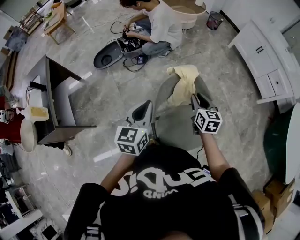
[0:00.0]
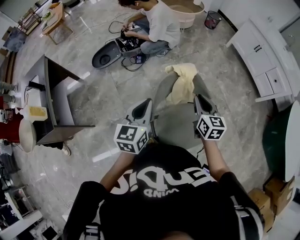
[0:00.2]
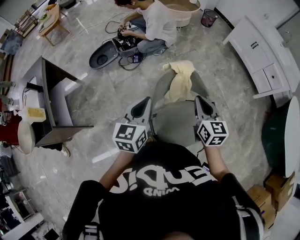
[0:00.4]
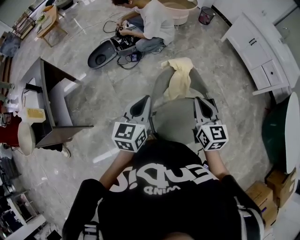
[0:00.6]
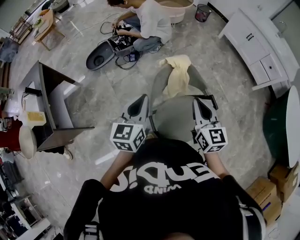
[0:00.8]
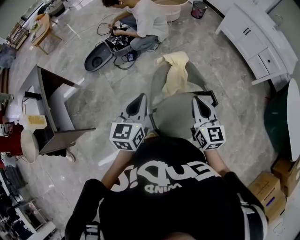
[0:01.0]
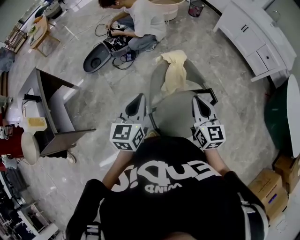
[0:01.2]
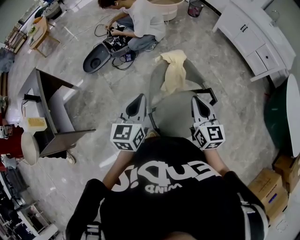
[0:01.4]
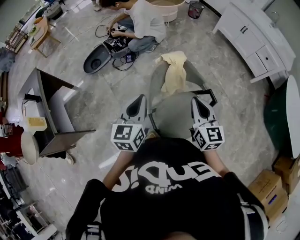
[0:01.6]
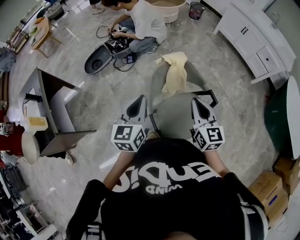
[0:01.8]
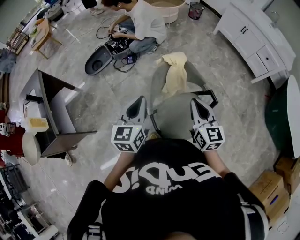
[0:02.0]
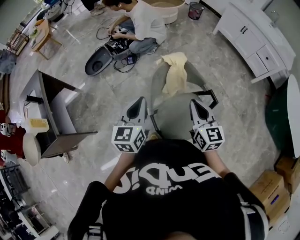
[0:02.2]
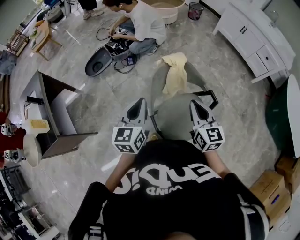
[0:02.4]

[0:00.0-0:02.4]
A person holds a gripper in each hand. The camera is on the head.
0:00.0 to 0:01.2: The right gripper travels backward and upward by about 15 cm, and closes.
0:01.2 to 0:02.4: The grippers move only a little.

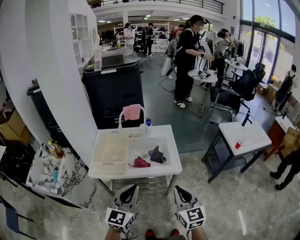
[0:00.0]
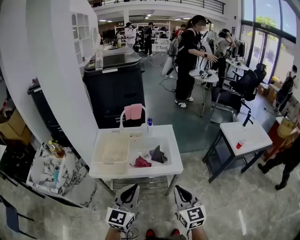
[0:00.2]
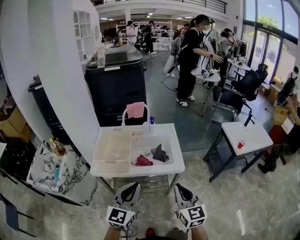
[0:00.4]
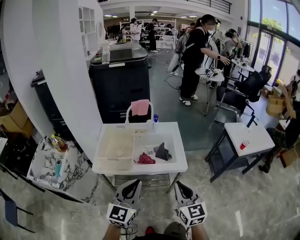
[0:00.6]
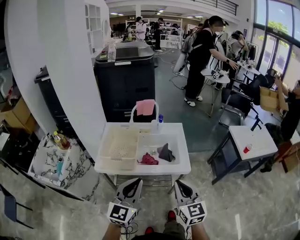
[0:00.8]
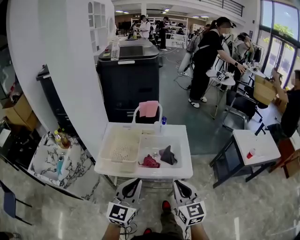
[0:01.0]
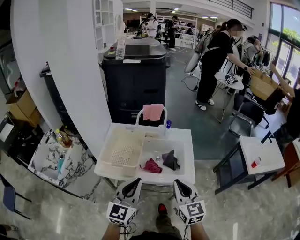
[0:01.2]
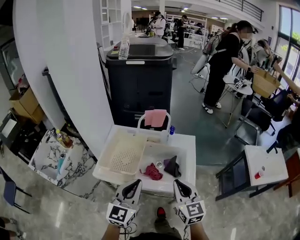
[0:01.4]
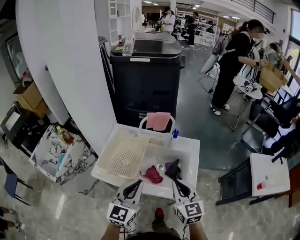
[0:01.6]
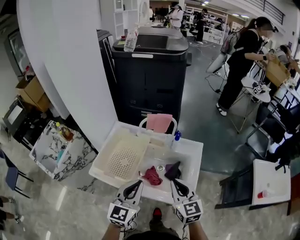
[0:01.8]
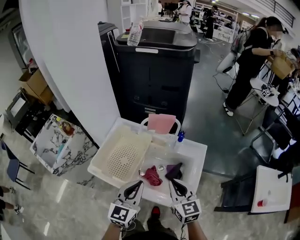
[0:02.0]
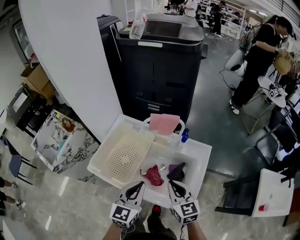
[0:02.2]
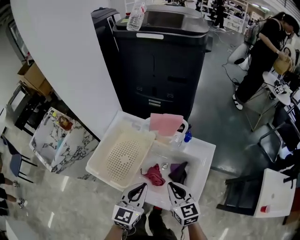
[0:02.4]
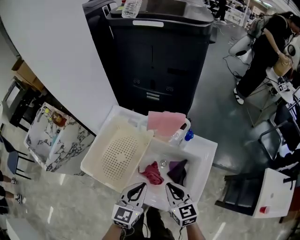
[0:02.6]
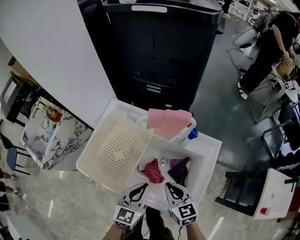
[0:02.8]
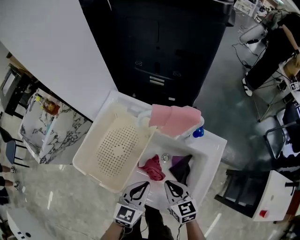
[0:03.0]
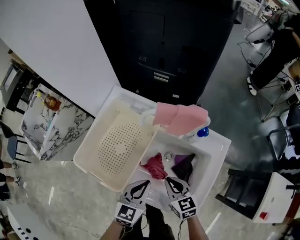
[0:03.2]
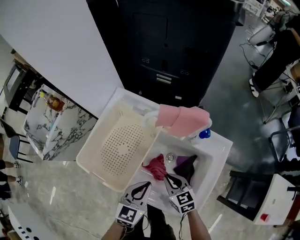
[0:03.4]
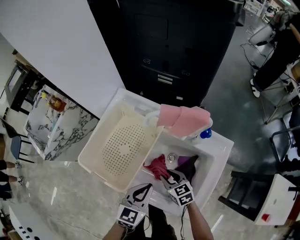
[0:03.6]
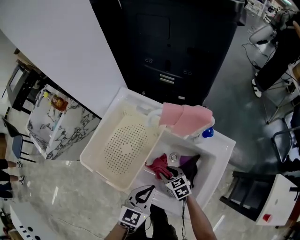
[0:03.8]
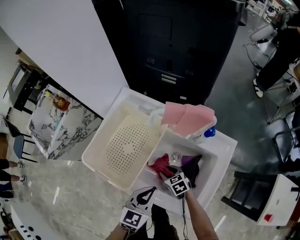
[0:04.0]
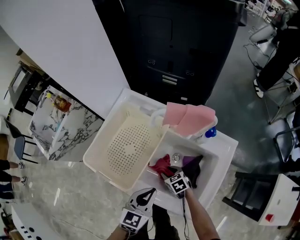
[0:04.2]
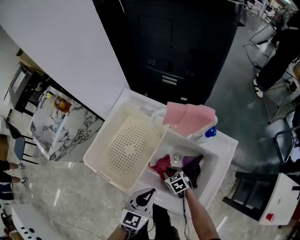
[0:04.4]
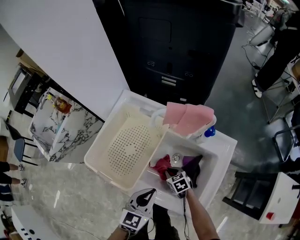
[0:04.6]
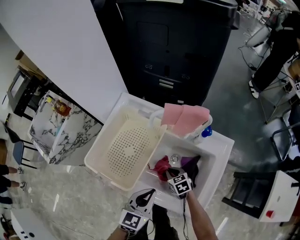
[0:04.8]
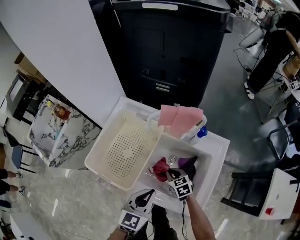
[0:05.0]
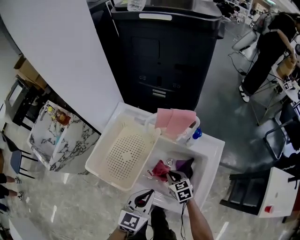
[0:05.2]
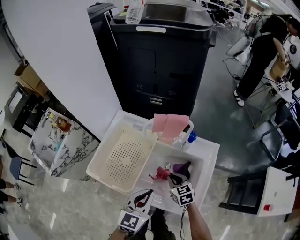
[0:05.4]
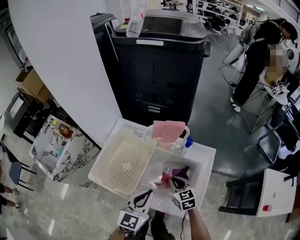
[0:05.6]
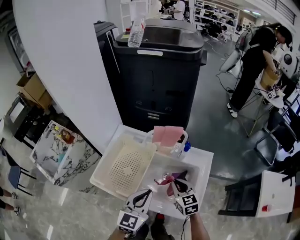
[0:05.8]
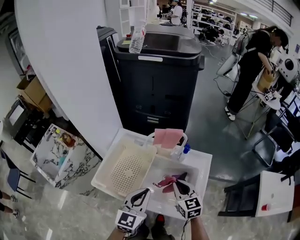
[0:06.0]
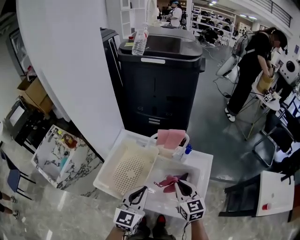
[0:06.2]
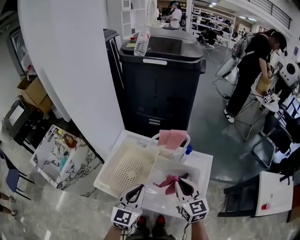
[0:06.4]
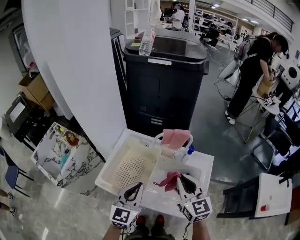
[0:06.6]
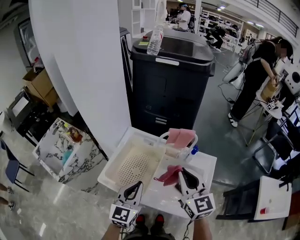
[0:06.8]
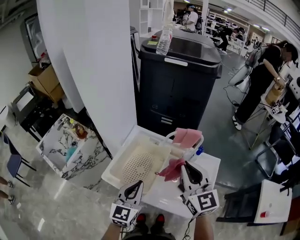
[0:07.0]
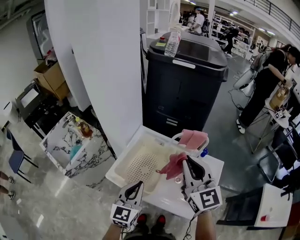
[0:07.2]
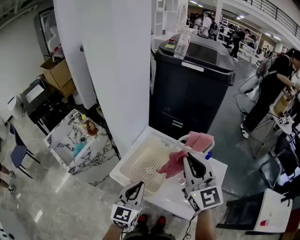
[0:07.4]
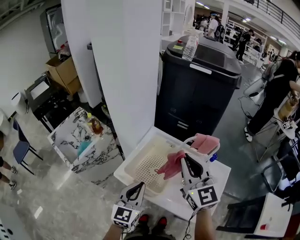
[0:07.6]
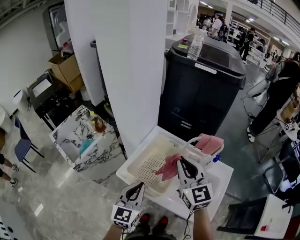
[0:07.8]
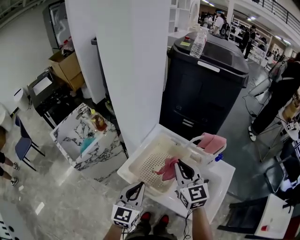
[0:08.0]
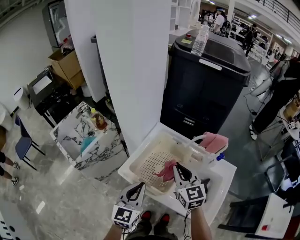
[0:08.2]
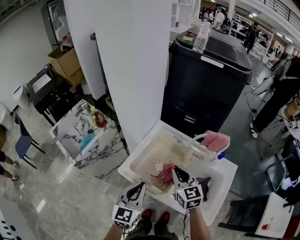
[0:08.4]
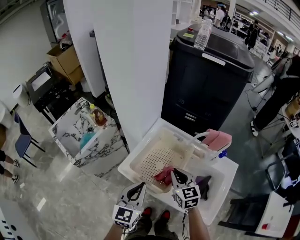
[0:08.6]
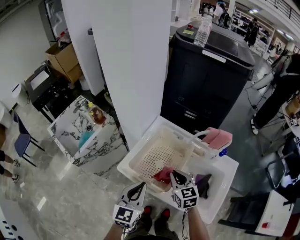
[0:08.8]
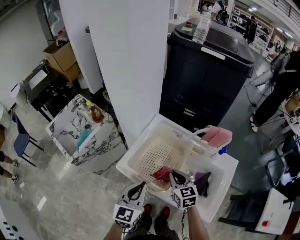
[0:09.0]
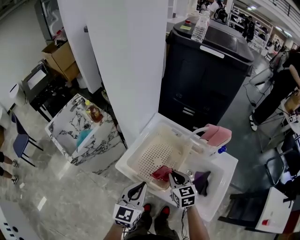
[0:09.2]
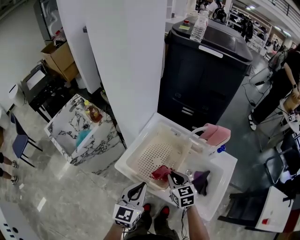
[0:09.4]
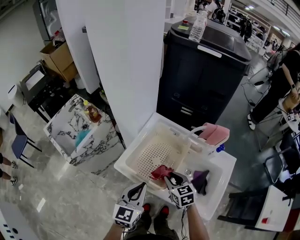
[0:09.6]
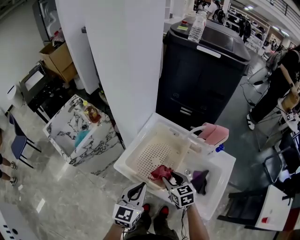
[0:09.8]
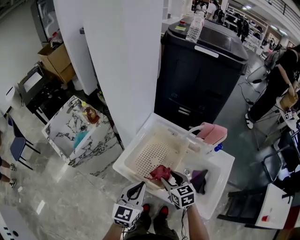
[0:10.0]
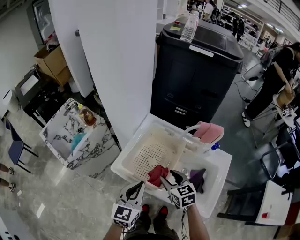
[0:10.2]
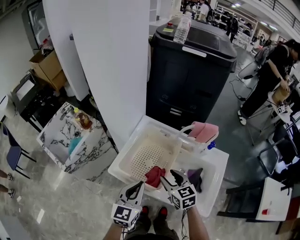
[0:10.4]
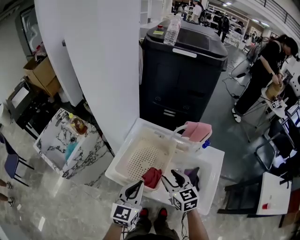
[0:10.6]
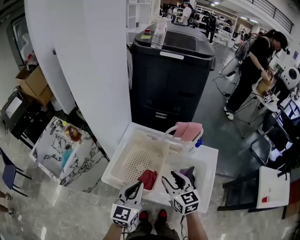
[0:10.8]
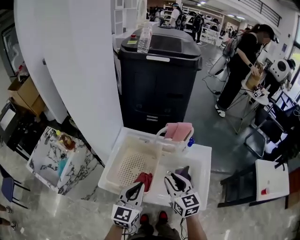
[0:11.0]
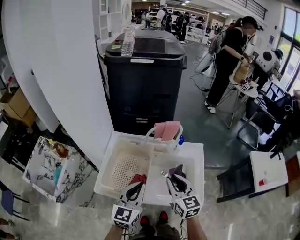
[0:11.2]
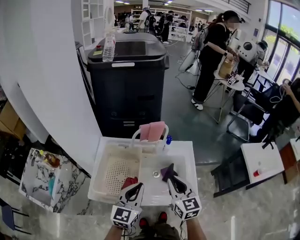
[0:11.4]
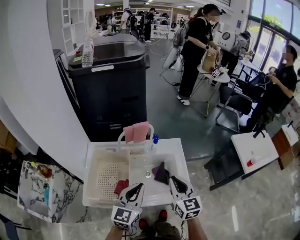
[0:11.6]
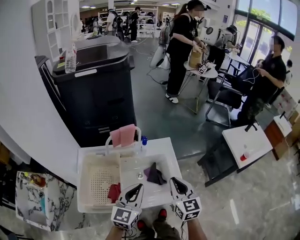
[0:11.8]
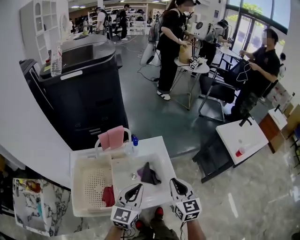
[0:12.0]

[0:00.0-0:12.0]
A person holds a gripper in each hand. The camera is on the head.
0:00.0 to 0:01.6: Both grippers move forward, some 20 cm.
0:01.6 to 0:03.0: The grippers both shift downward and forward by approximately 25 cm. The left gripper rotates roughly 20 degrees; the right gripper rotates roughly 30 degrees.
0:03.0 to 0:04.4: The right gripper moves downward, approximately 20 cm, and turns by approximately 30 degrees.
0:04.4 to 0:06.0: The right gripper goes roughly 30 cm upward, and angles its fingers upward, by roughly 30 degrees; the left gripper is displaced upward by some 15 cm.
0:06.0 to 0:07.6: The left gripper travels to the left by roughly 15 cm. Meanwhile the right gripper heads upward and to the left, covering roughly 30 cm, and turns by about 30 degrees.
0:07.6 to 0:09.0: The right gripper heads downward, covering about 30 cm, and tilts its fingers about 30 degrees downward. The left gripper travels downward by about 5 cm.
0:09.0 to 0:10.4: The right gripper opens.
0:10.4 to 0:12.0: The left gripper moves approximately 25 cm, and swivels some 40 degrees; the right gripper moves some 30 cm, swivels some 50 degrees, and closes.

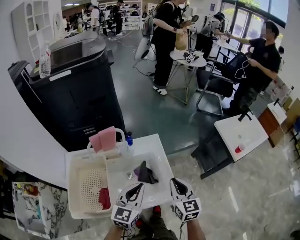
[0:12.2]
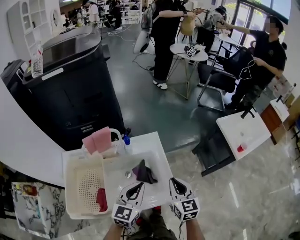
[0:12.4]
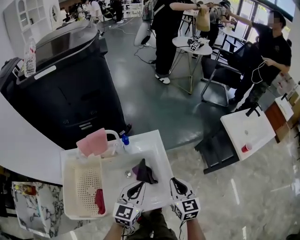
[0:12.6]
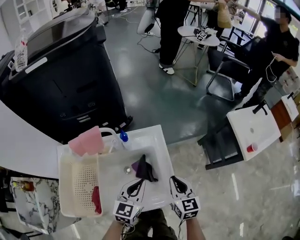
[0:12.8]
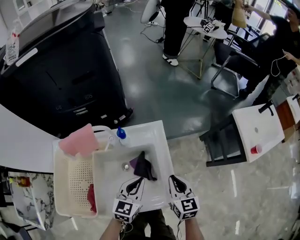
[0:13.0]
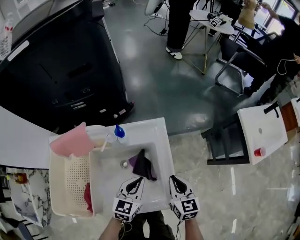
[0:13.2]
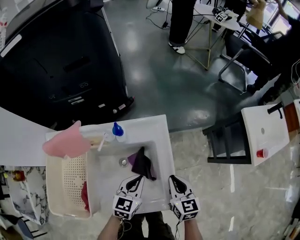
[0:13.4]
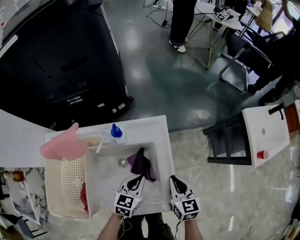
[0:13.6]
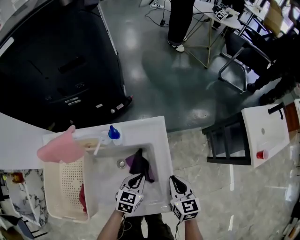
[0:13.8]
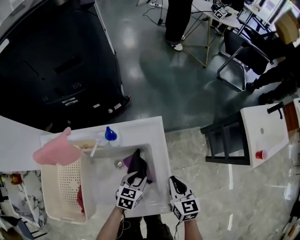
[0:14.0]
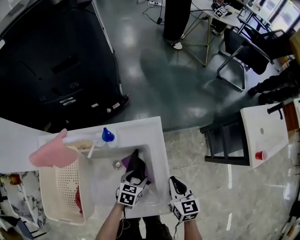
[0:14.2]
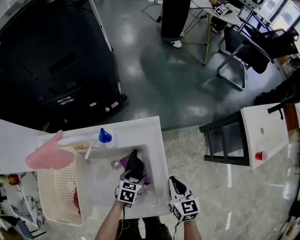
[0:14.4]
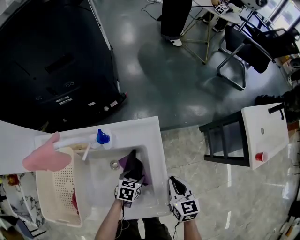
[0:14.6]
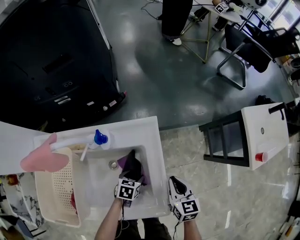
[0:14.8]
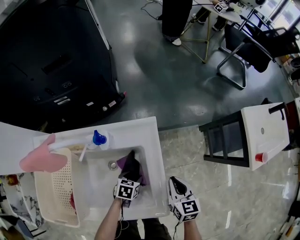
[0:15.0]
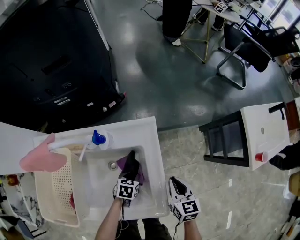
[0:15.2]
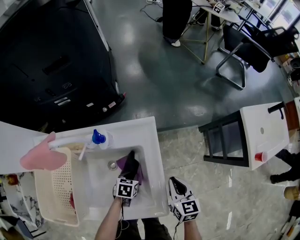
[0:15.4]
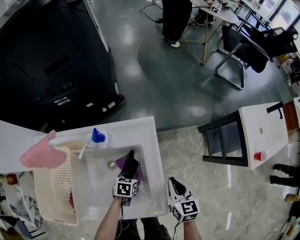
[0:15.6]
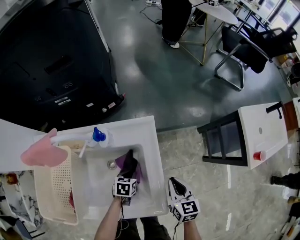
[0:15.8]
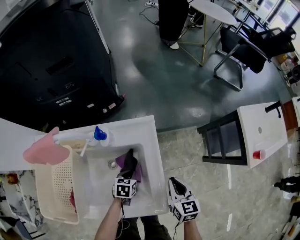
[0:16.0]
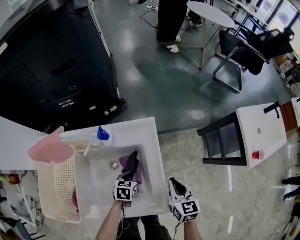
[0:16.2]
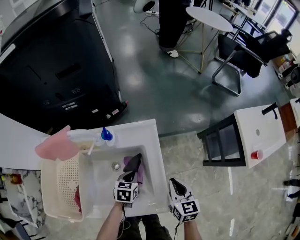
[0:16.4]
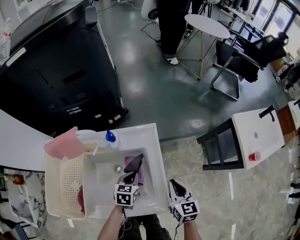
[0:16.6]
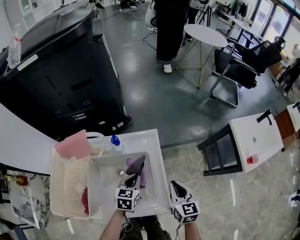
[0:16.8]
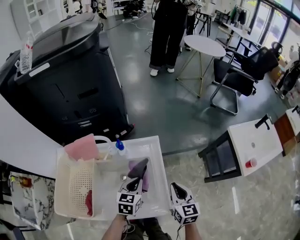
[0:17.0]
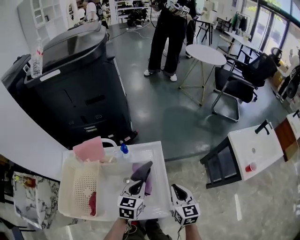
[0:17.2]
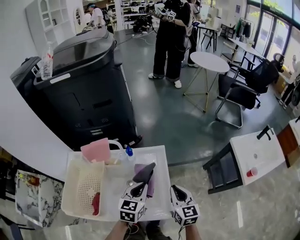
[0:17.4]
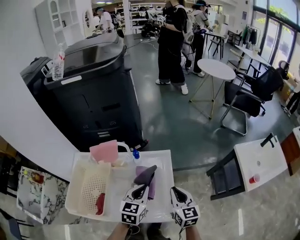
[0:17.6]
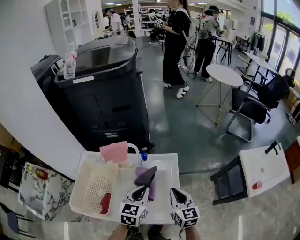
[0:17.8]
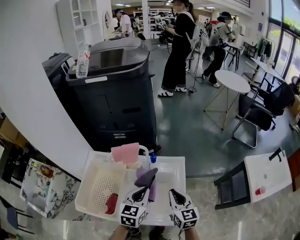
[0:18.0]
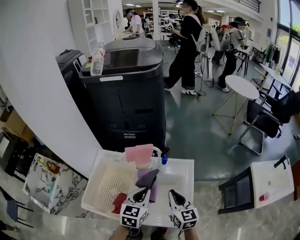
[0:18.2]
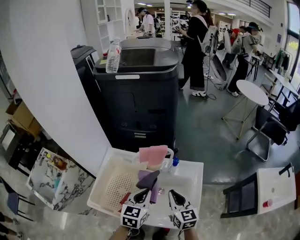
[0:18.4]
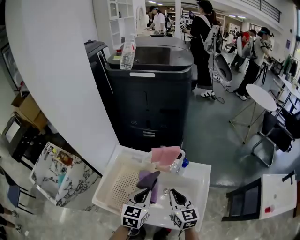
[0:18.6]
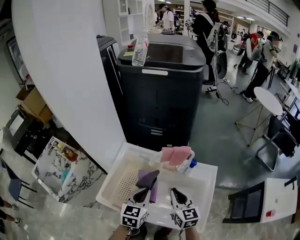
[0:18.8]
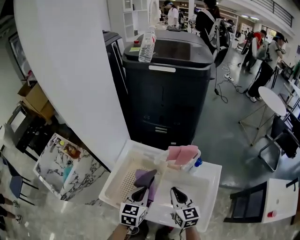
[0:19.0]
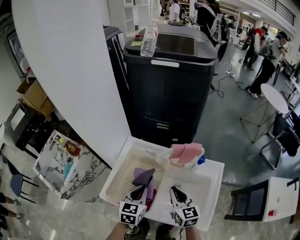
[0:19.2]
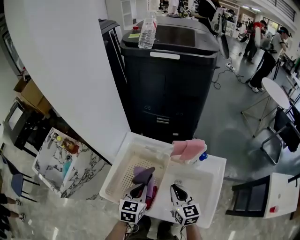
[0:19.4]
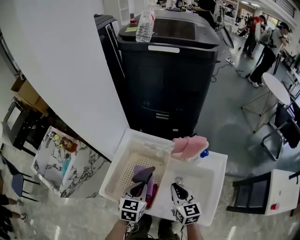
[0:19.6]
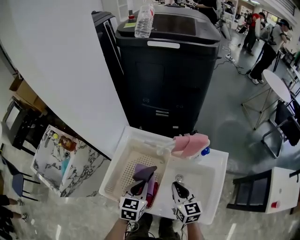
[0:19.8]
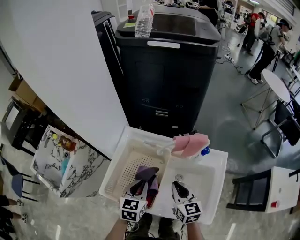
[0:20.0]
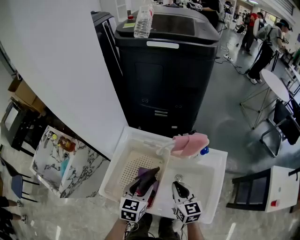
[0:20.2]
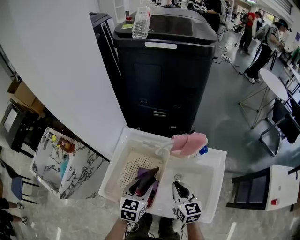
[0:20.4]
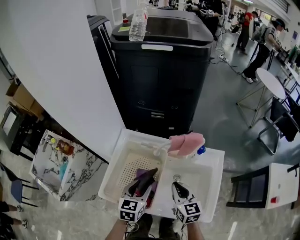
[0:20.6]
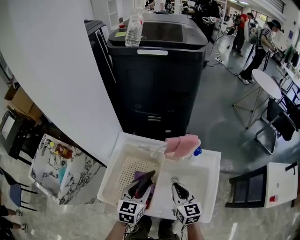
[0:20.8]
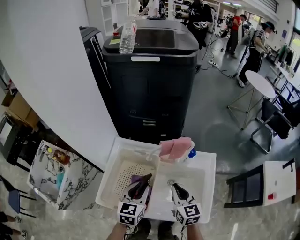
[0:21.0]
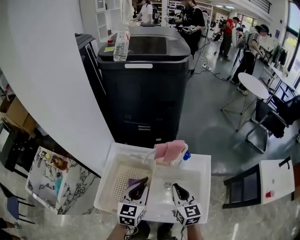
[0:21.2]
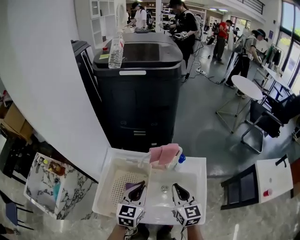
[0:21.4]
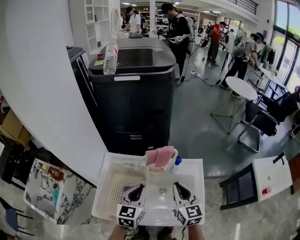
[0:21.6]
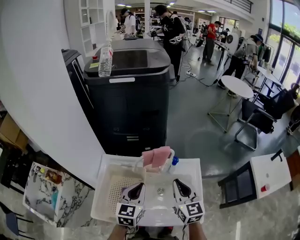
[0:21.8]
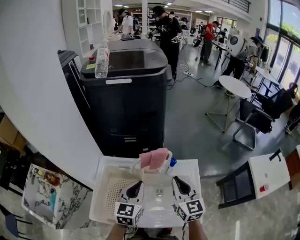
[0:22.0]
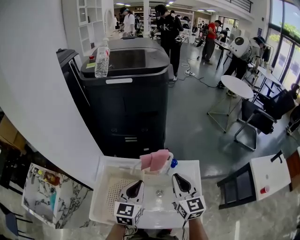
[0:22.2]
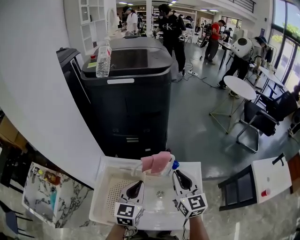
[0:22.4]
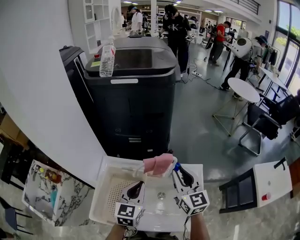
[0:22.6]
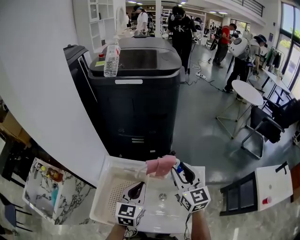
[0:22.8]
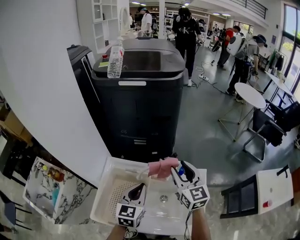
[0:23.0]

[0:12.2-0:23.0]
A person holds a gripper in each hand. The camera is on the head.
0:12.2 to 0:13.8: The right gripper travels downward and forward by roughly 20 cm, and changes its angle by some 20 degrees. Meanwhile the left gripper is displaced downward by roughly 25 cm, and tips its fingers downward by approximately 30 degrees.
0:13.8 to 0:15.2: The left gripper is displaced downward by approximately 10 cm, swivels about 30 degrees, and opens up, while the right gripper changes place by some 5 cm.
0:15.2 to 0:16.8: The left gripper heads upward, covering some 20 cm, and changes its angle by roughly 30 degrees, while the right gripper heads upward, covering about 10 cm.
0:16.8 to 0:18.4: The right gripper travels to the left and upward by roughly 25 cm, and turns by some 30 degrees. The left gripper goes roughly 25 cm upward and to the left, and changes its angle by about 20 degrees.
0:18.4 to 0:20.0: The two grippers go approximately 15 cm to the left and downward.
0:20.0 to 0:21.4: The grippers both shift upward and to the right by roughly 10 cm. The left gripper opens and closes again.
0:21.4 to 0:23.0: The right gripper heads forward and upward, covering some 15 cm, and opens. Meanwhile the left gripper shifts approximately 5 cm forward.
